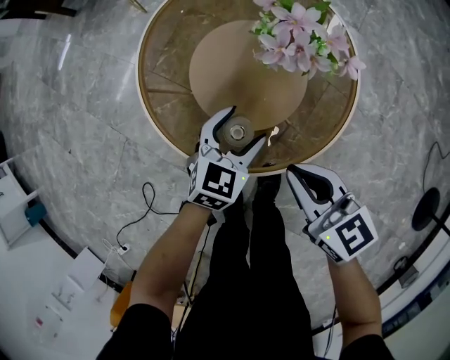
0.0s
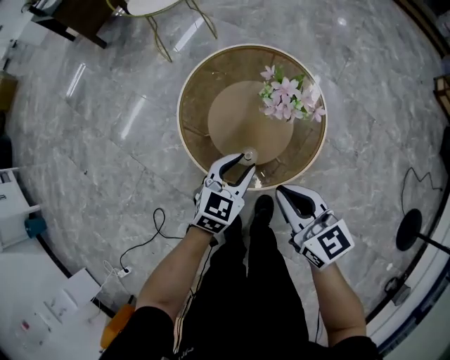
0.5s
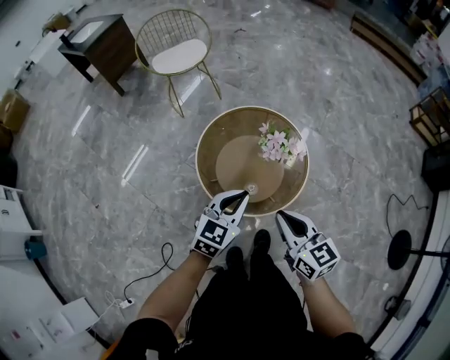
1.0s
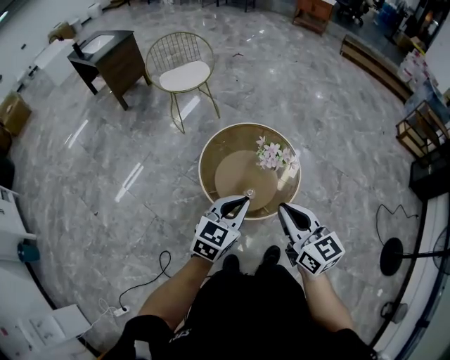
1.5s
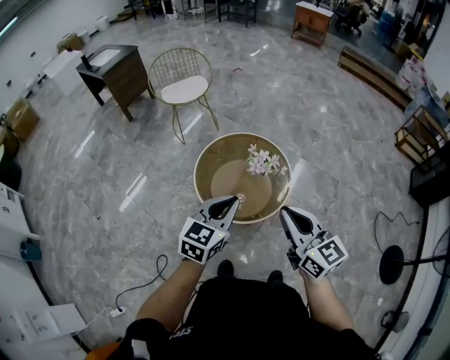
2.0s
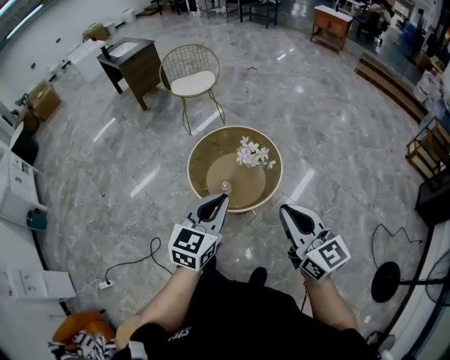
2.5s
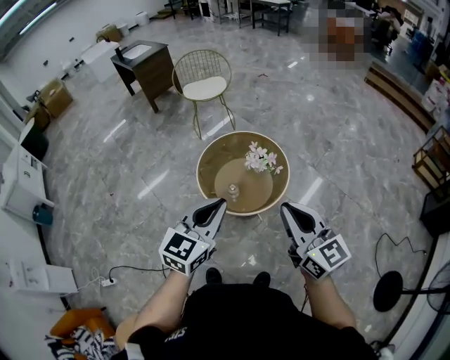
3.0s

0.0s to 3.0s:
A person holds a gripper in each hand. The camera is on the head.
0.0s to 1.5s: The two grippers go roughly 50 cm upward. The left gripper closes up, while the right gripper swivels approximately 20 degrees.
1.5s to 3.0s: The left gripper is displaced backward, upward and to the right by about 25 cm, and changes its angle by approximately 20 degrees. The right gripper moves to the right, backward and upward, roughly 25 cm.

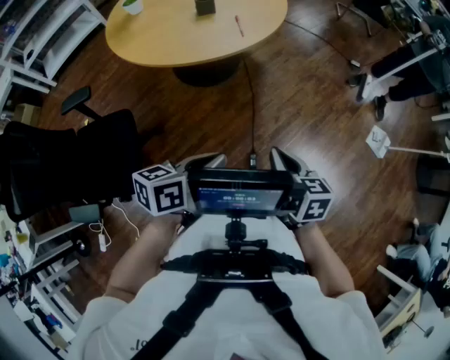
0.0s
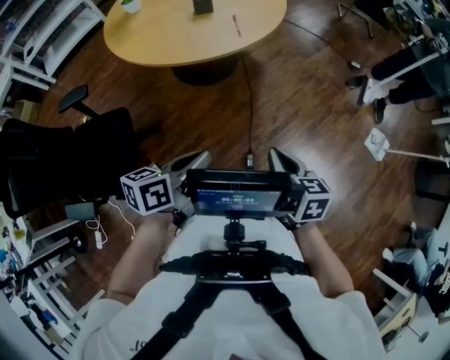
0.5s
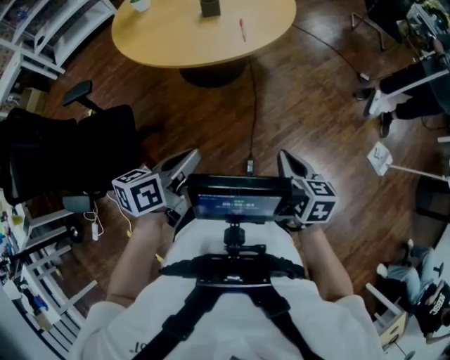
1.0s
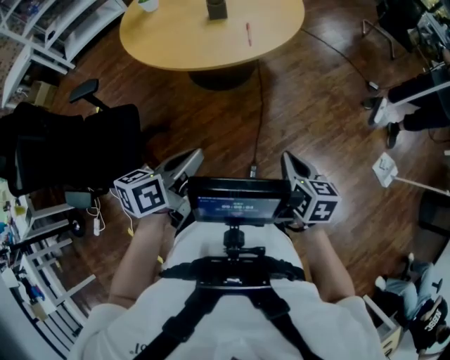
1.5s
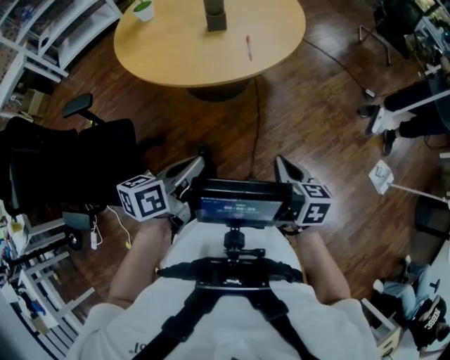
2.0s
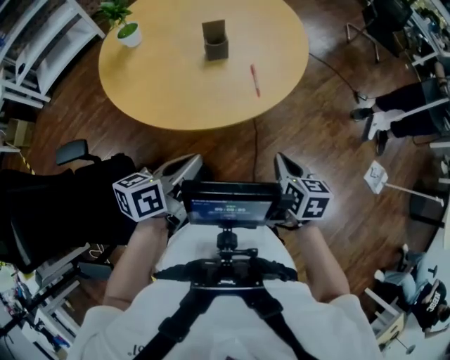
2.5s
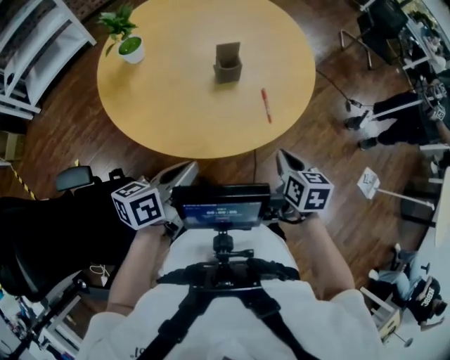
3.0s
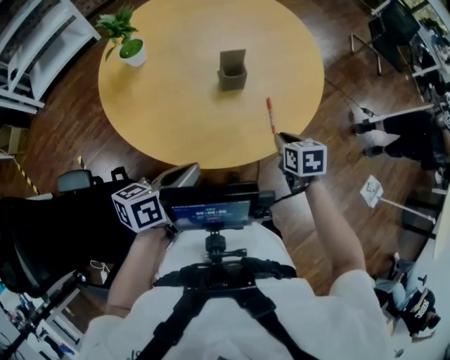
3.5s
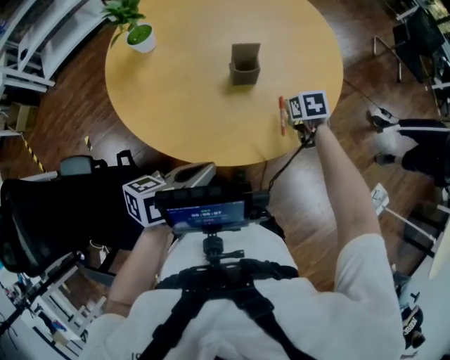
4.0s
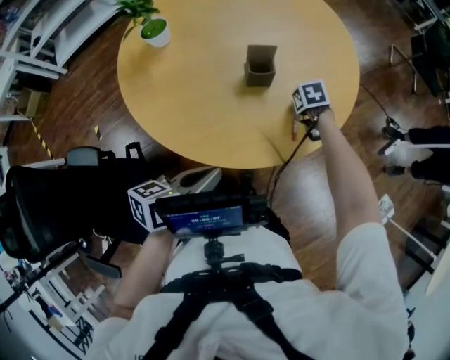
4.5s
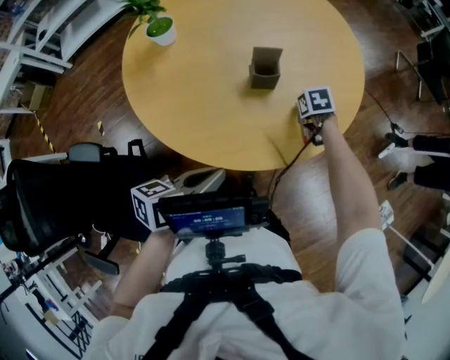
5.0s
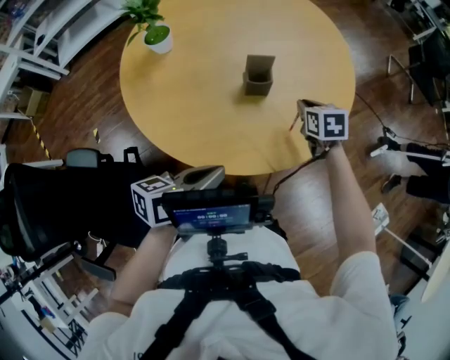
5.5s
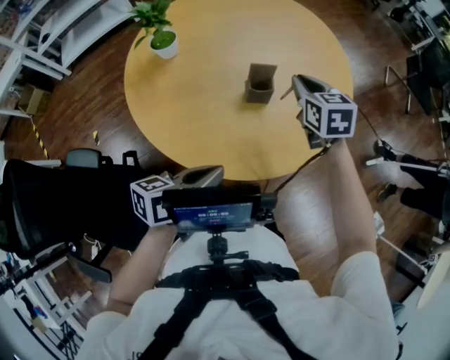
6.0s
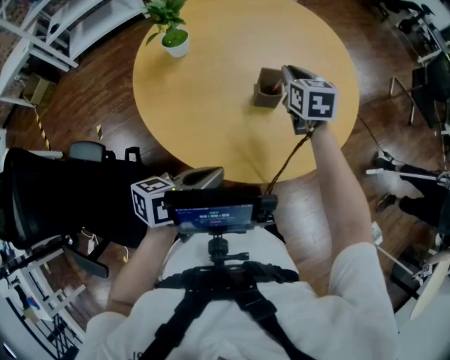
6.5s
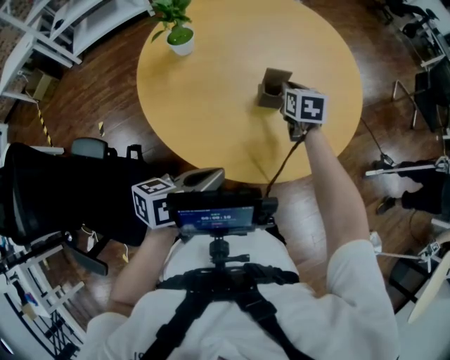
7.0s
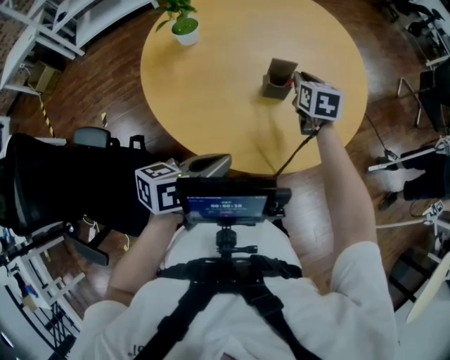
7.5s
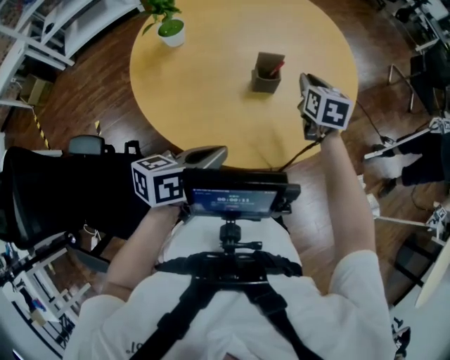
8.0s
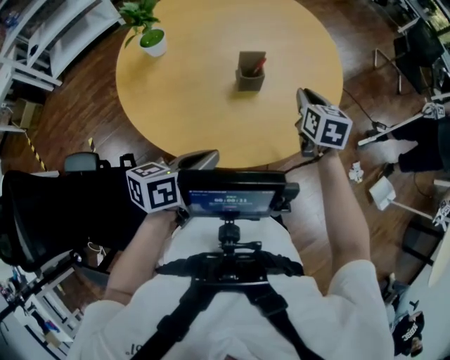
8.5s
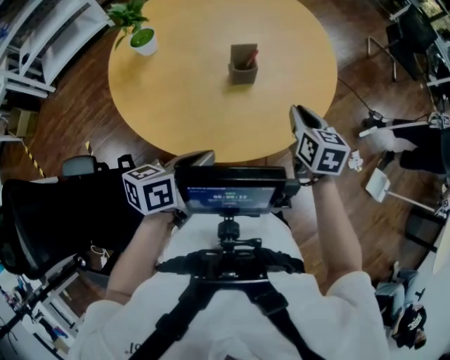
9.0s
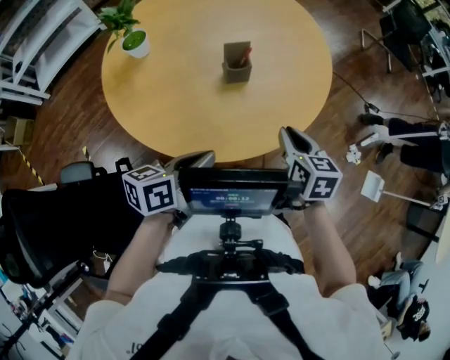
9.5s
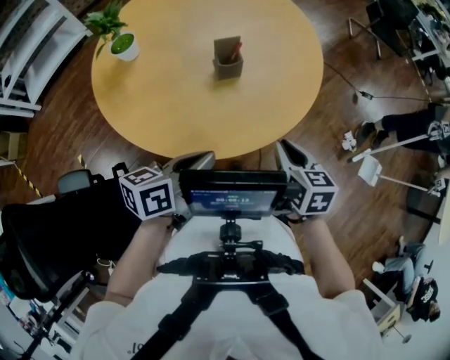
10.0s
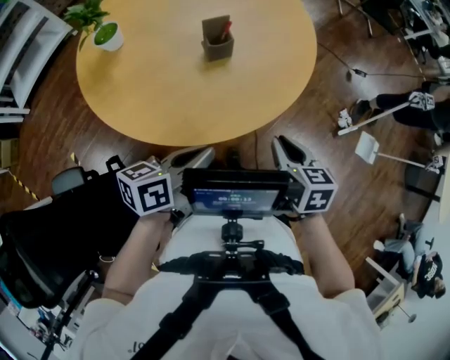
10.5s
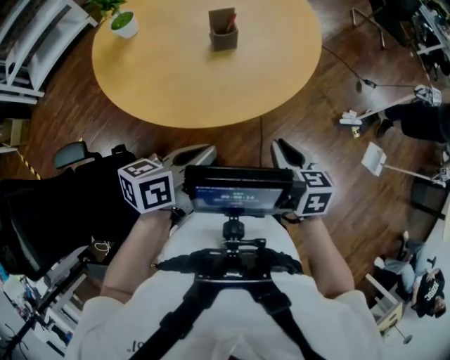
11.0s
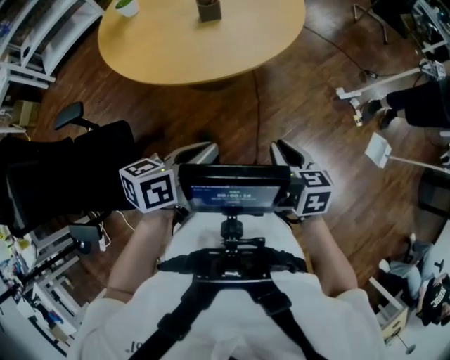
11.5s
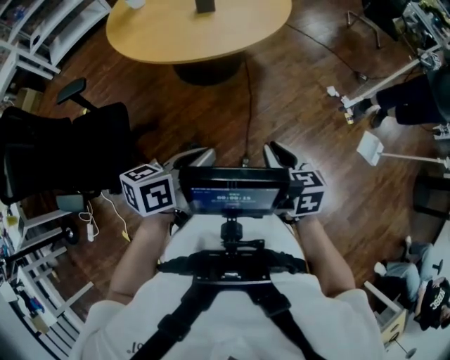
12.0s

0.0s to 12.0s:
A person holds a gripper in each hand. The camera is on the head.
0.0s to 2.0s: Both grippers move forward, some 10 cm.
2.0s to 4.0s: The left gripper moves forward and to the left, about 30 cm. The right gripper is displaced forward by approximately 50 cm, and swivels roughly 30 degrees.
4.0s to 6.0s: The right gripper travels upward by roughly 20 cm, and points its fingers roughly 30 degrees further upward.
8.0s to 10.0s: The right gripper is displaced backward by about 25 cm.
10.0s to 12.0s: Both grippers travel together backward and to the right, about 40 cm.

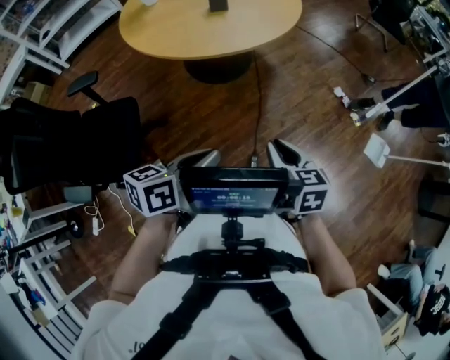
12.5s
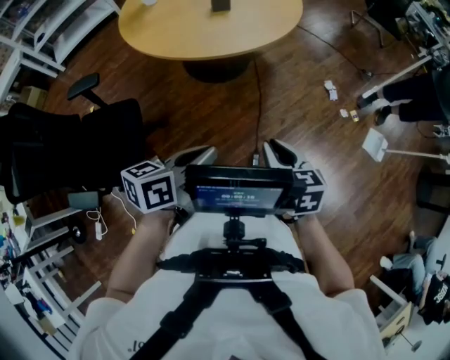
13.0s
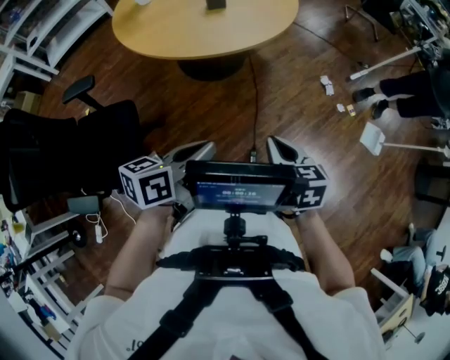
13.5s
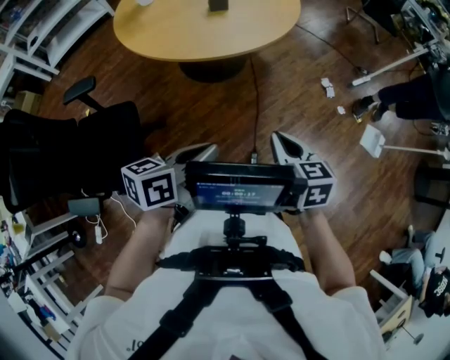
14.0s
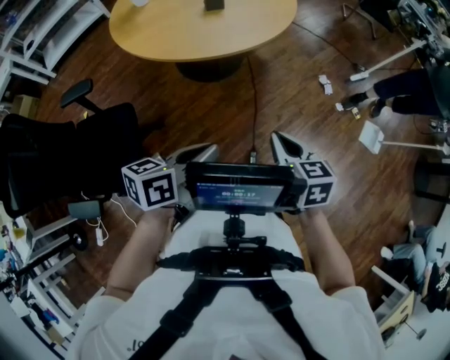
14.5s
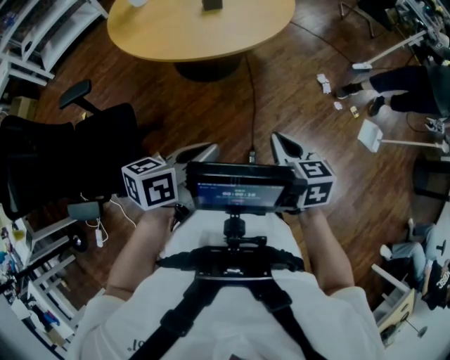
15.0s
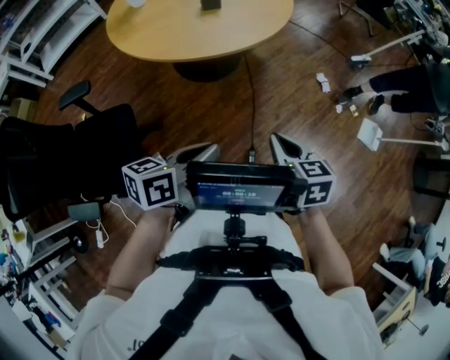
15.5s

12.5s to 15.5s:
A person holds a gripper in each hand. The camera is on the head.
12.5s to 14.0s: Both grippers travel together to the left, approximately 5 cm.
14.0s to 15.5s: Both grippers stay about where they are.

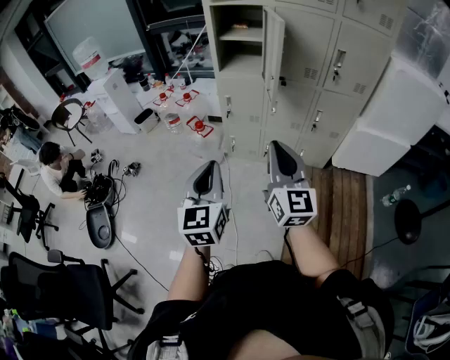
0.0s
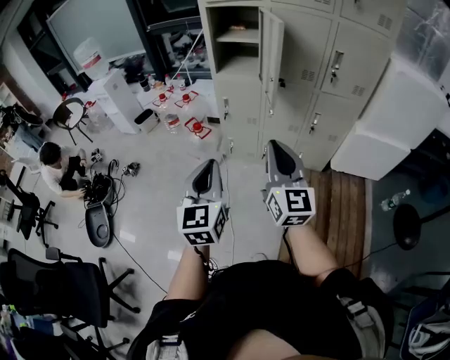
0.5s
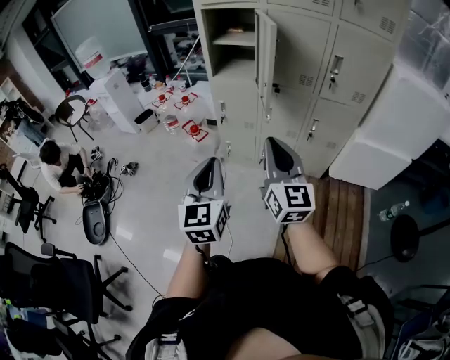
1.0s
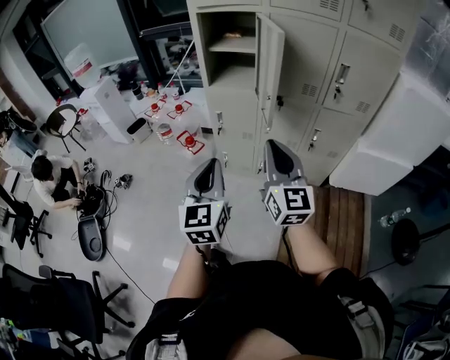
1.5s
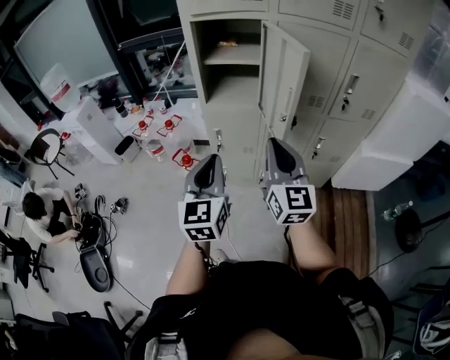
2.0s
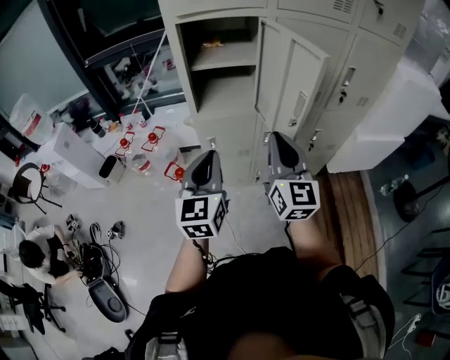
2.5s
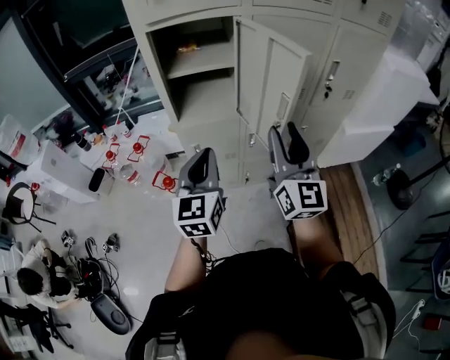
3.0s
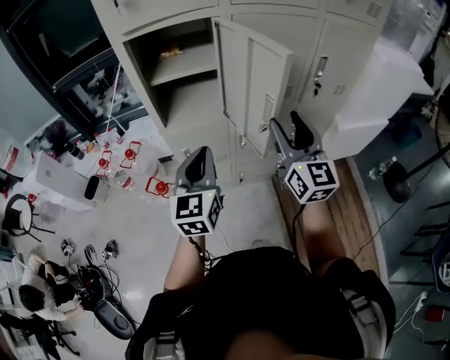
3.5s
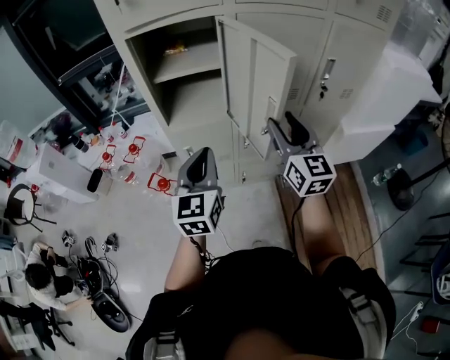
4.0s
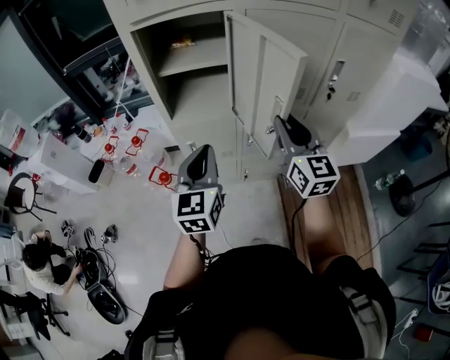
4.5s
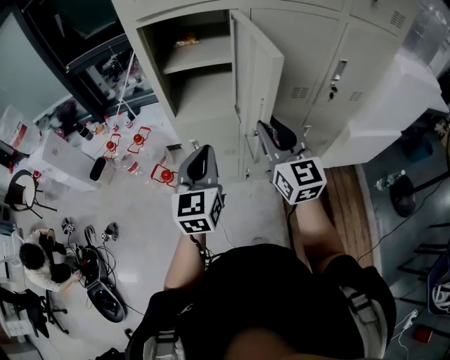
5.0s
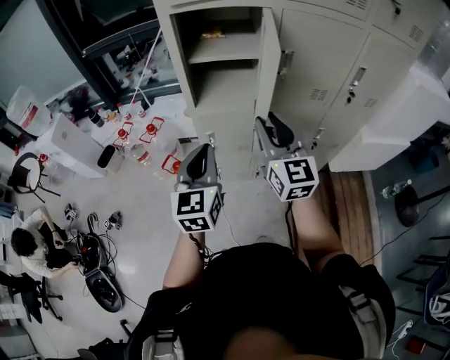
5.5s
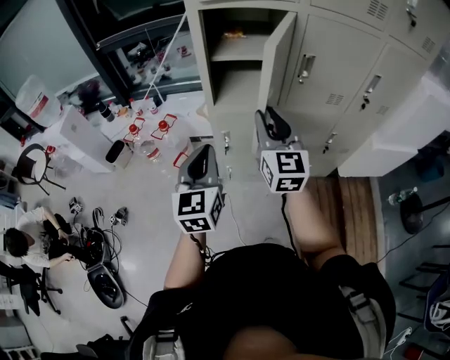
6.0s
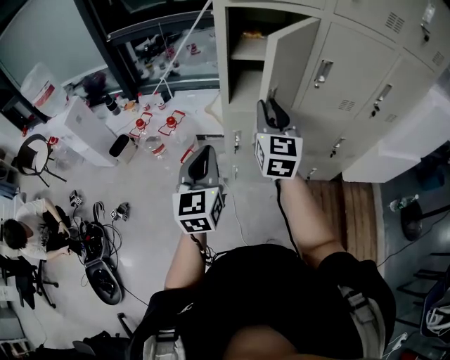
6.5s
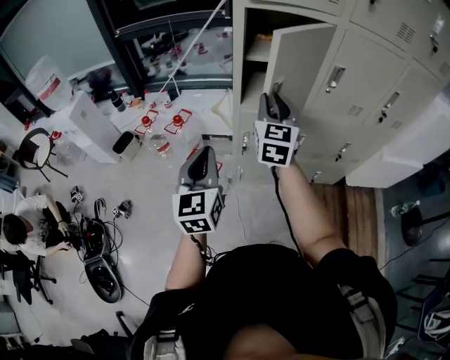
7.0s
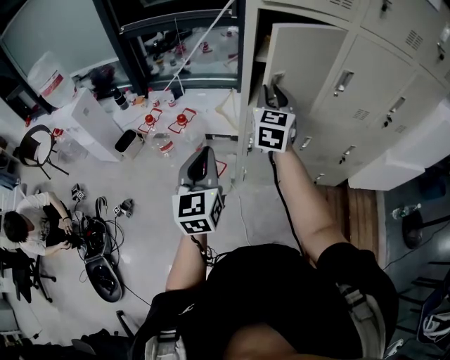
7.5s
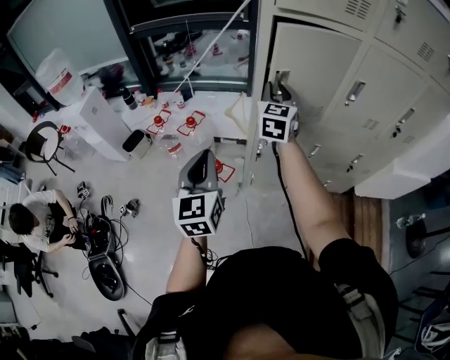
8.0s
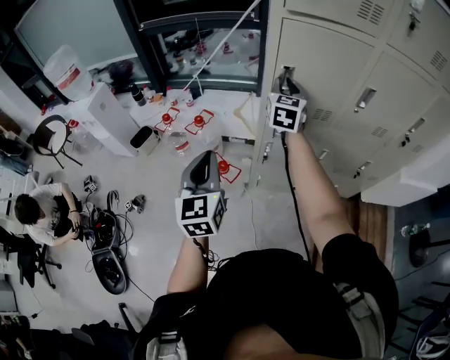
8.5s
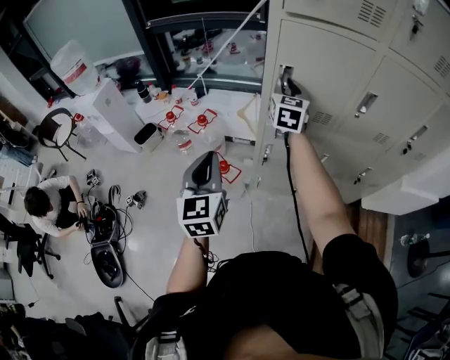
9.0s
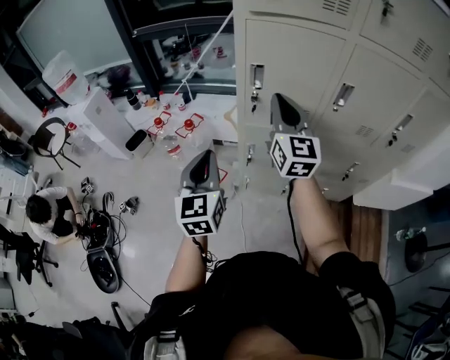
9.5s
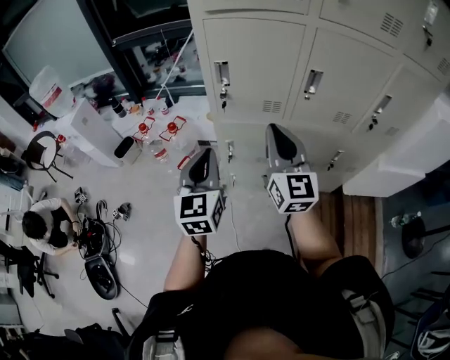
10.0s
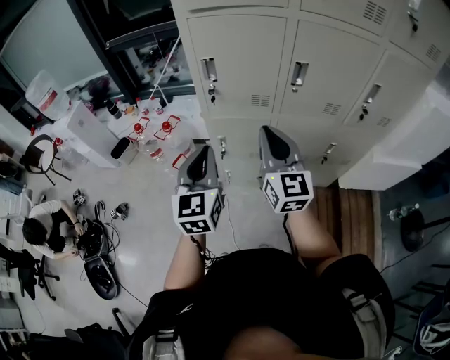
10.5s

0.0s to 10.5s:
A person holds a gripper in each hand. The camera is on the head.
0.0s to 2.0s: The two grippers go approximately 25 cm forward.
2.0s to 4.0s: The left gripper heads forward, covering roughly 15 cm; the right gripper shifts some 15 cm forward and to the right, and opens its fingers.
4.0s to 6.5s: Both grippers travel together to the left, approximately 20 cm. The right gripper closes its fingers.
6.5s to 8.5s: The left gripper goes about 10 cm to the left. The right gripper heads forward and to the left, covering about 20 cm.
8.5s to 10.5s: The right gripper shifts some 30 cm backward and to the right, swivels about 20 degrees, and closes its fingers, while the left gripper is displaced to the right by roughly 20 cm.
